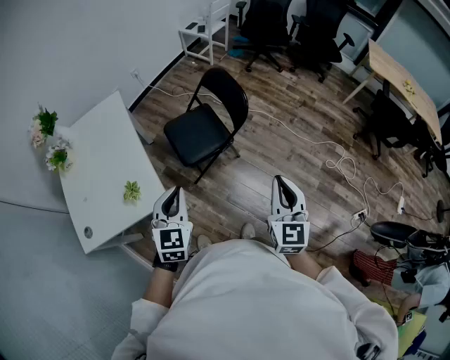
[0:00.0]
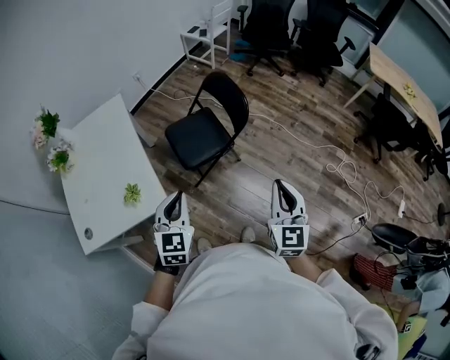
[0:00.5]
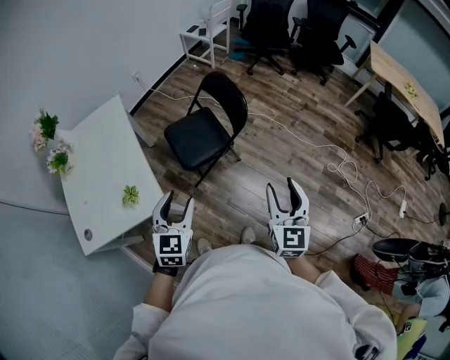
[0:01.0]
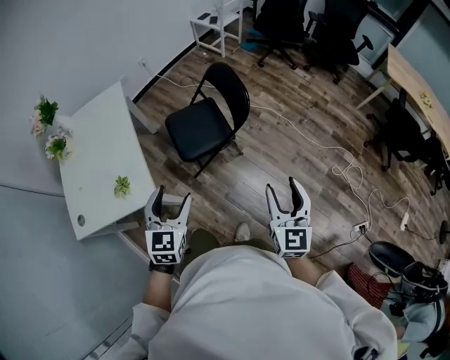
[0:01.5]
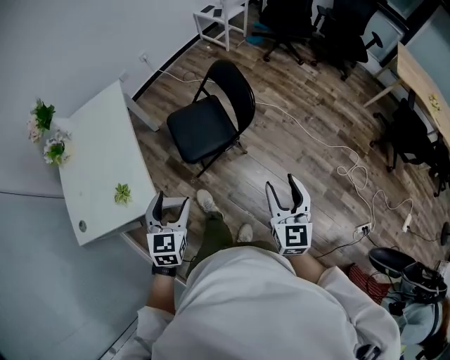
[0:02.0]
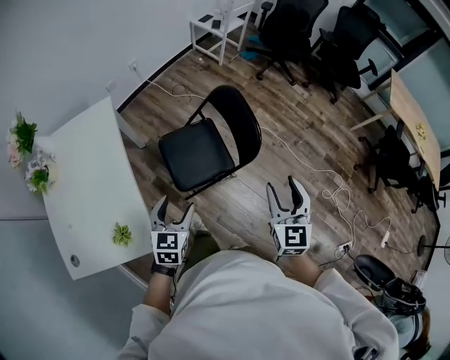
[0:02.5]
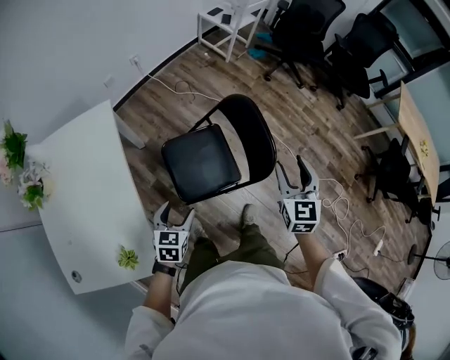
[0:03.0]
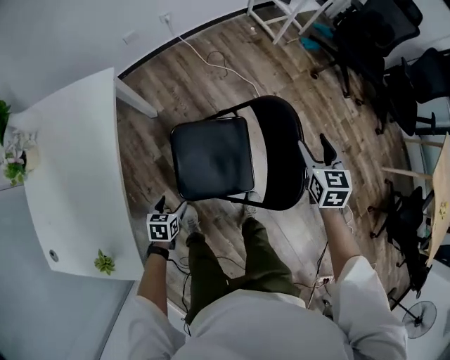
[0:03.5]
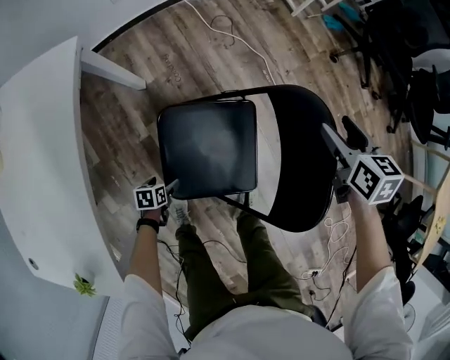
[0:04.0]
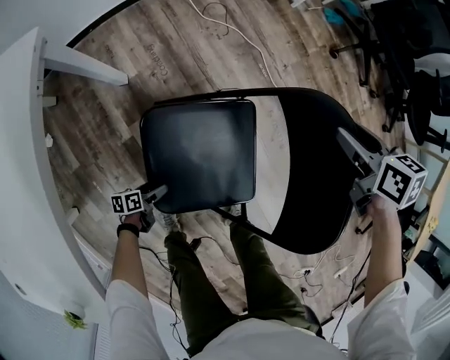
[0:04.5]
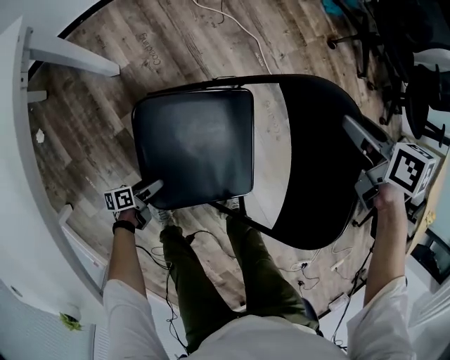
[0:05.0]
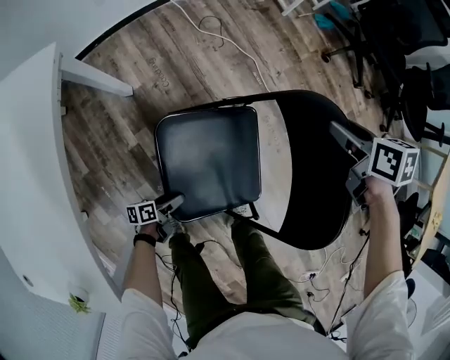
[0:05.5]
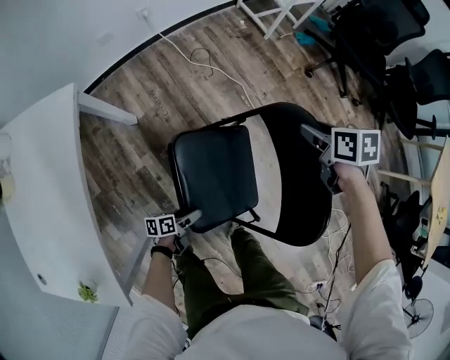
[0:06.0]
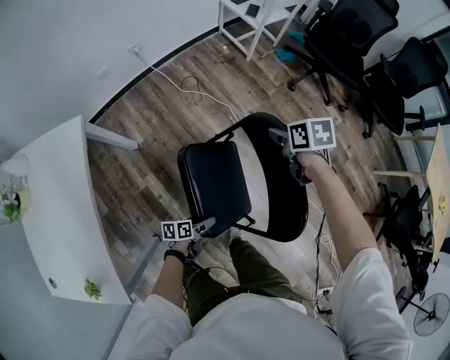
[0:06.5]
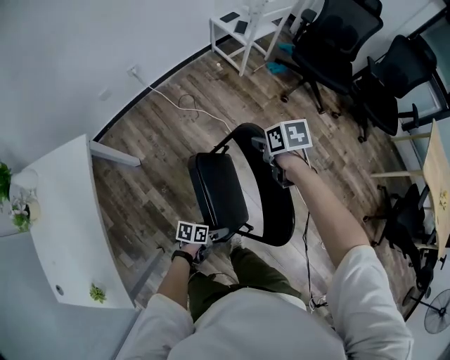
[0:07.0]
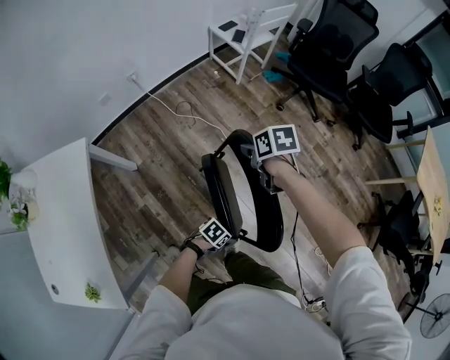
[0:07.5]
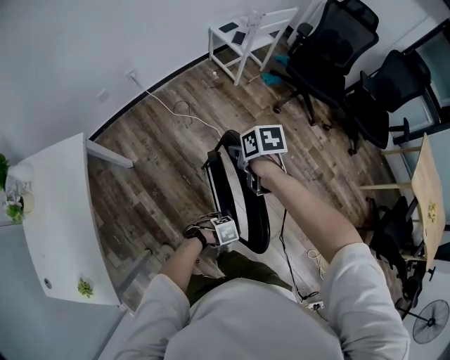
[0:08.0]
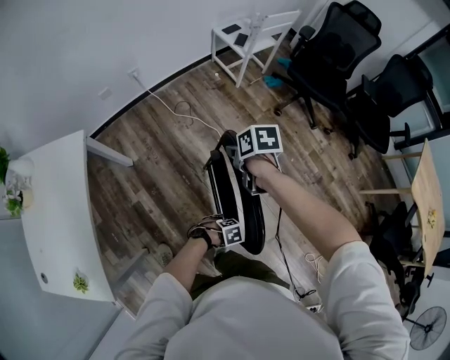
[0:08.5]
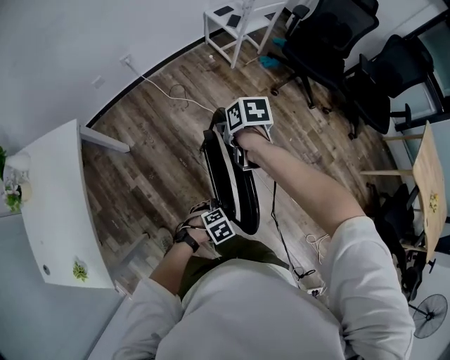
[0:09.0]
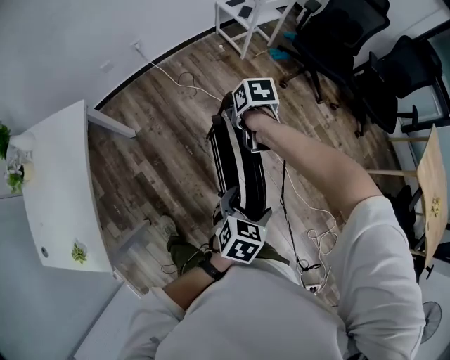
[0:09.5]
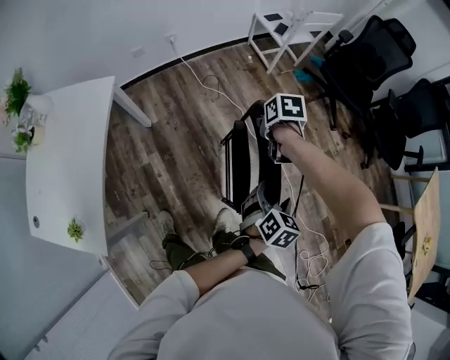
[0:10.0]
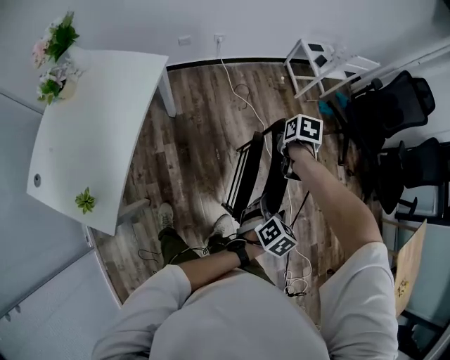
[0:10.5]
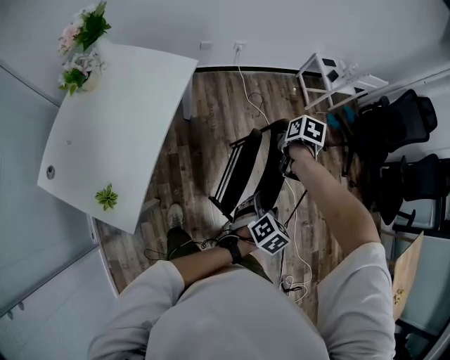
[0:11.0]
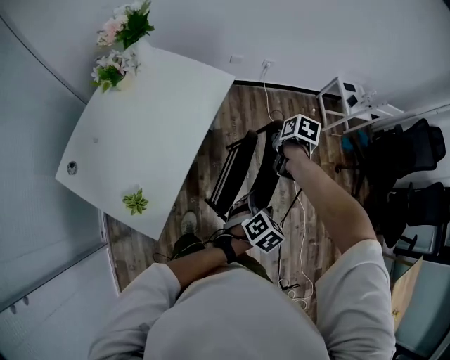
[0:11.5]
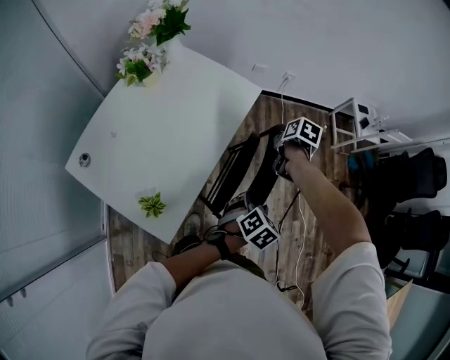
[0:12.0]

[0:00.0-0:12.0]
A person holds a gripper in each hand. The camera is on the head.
0:00.0 to 0:02.0: The right gripper is displaced forward, to the right and downward by about 15 cm, and opens. Meanwhile the left gripper goes approximately 10 cm forward and downward, and opens.
0:02.0 to 0:04.0: The right gripper goes approximately 70 cm forward, and tilts its fingers roughly 30 degrees downward; the left gripper is displaced downward and forward by approximately 70 cm, and points its fingers approximately 40 degrees further downward.
0:04.0 to 0:06.0: The right gripper goes downward and returns, some 5 cm each way, and closes its fingers, while the left gripper travels to the right and upward by about 20 cm, and angles its fingers upward, by about 30 degrees.
0:06.0 to 0:08.0: The right gripper moves upward, some 10 cm. The left gripper moves roughly 30 cm, and angles its fingers downward, by some 30 degrees.
0:08.0 to 0:10.0: The left gripper shifts roughly 20 cm upward, and turns by approximately 70 degrees.
0:10.0 to 0:12.0: The two grippers travel together, to the left, roughly 50 cm. The left gripper closes its fingers.

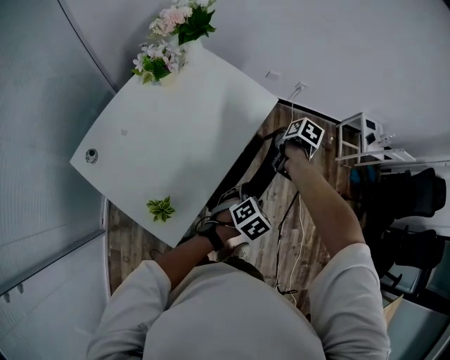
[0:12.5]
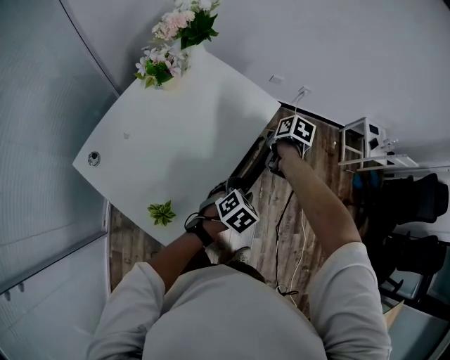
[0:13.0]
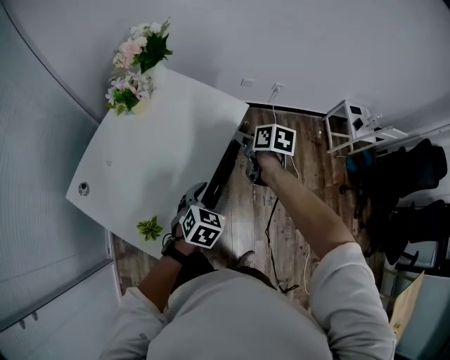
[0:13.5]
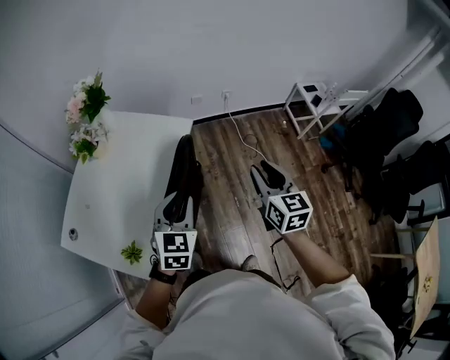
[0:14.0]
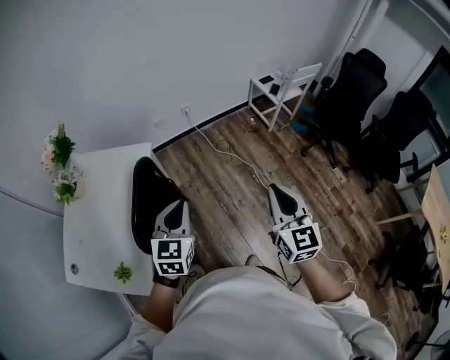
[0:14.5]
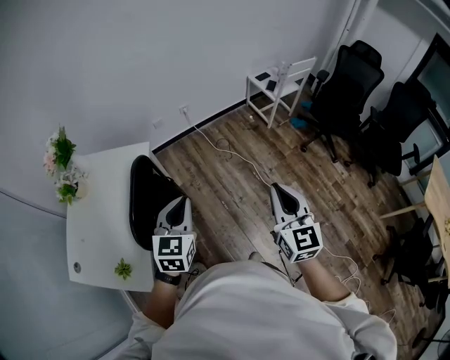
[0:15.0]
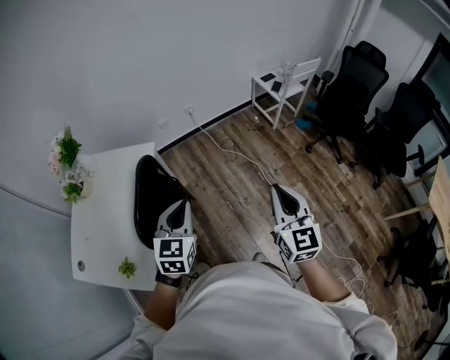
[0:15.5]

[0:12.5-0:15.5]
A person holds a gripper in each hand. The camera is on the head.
0:12.5 to 0:14.0: The right gripper heads upward, to the right and backward, covering some 30 cm, tips its fingers upward by roughly 50 degrees, and opens and closes again, while the left gripper moves upward, approximately 15 cm, and turns by some 30 degrees.
0:14.0 to 0:15.5: The right gripper moves to the right and backward, some 30 cm, turns by some 20 degrees, and closes its fingers. The left gripper is displaced to the right by about 20 cm.

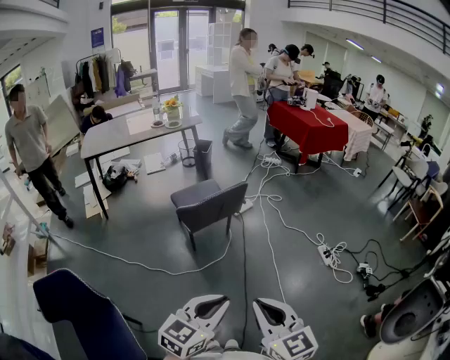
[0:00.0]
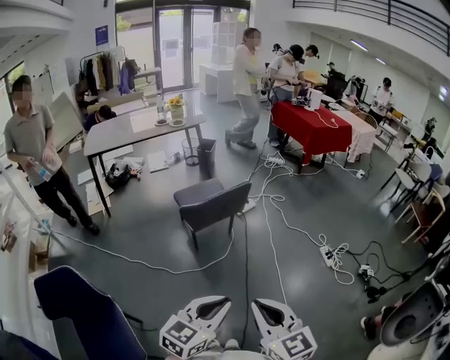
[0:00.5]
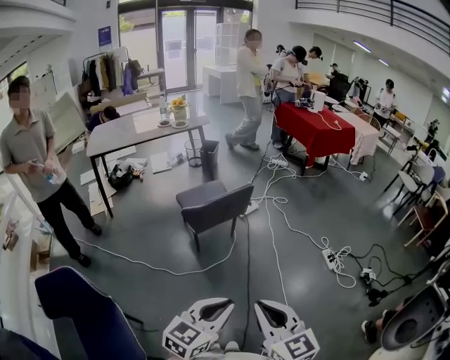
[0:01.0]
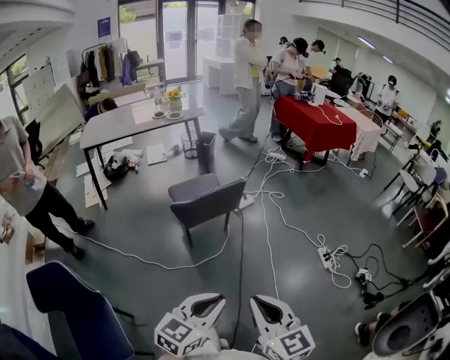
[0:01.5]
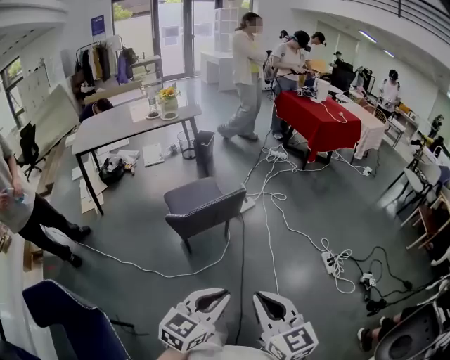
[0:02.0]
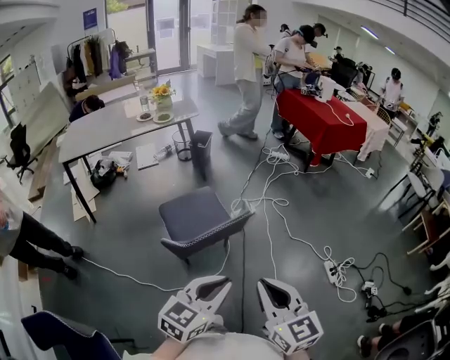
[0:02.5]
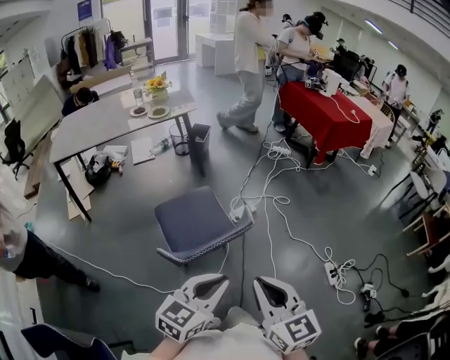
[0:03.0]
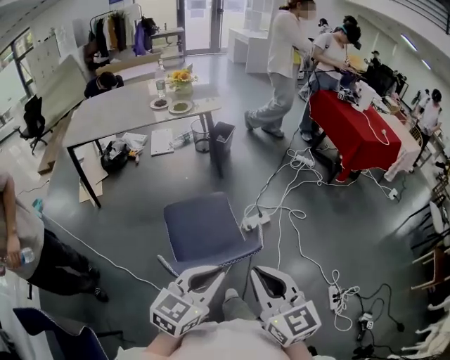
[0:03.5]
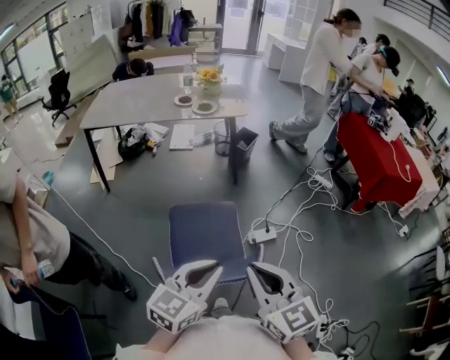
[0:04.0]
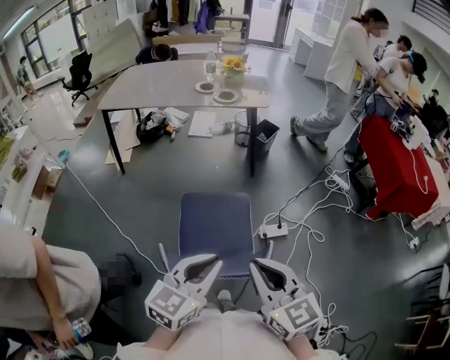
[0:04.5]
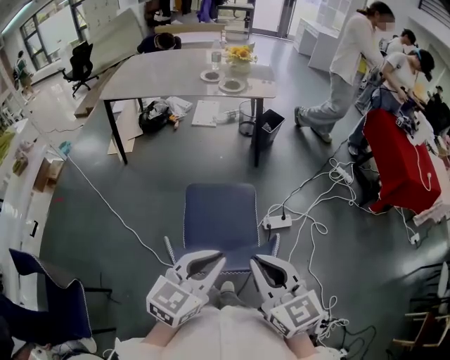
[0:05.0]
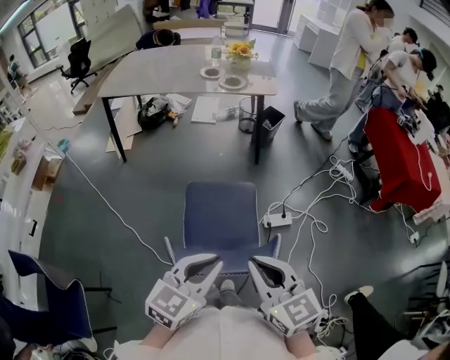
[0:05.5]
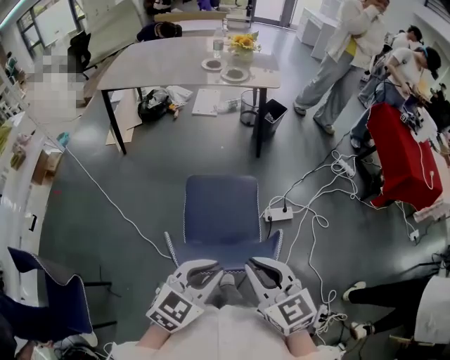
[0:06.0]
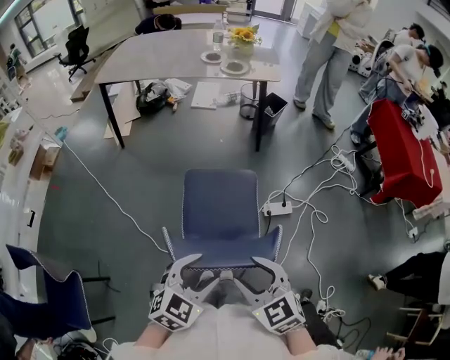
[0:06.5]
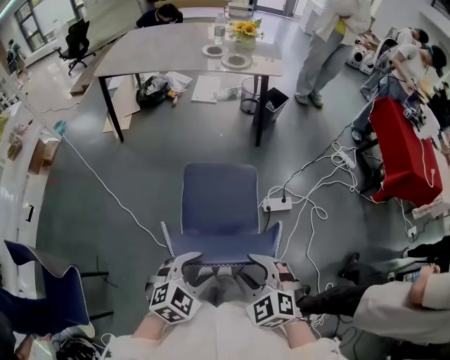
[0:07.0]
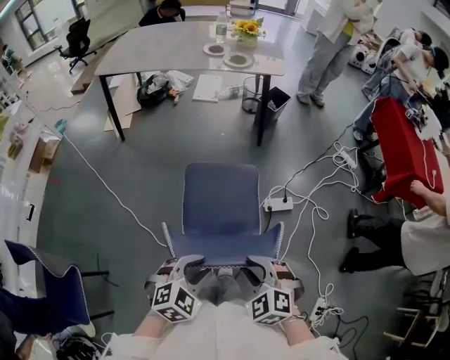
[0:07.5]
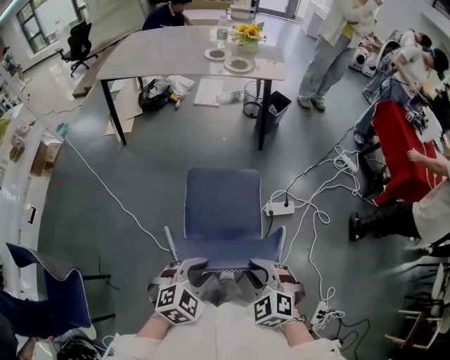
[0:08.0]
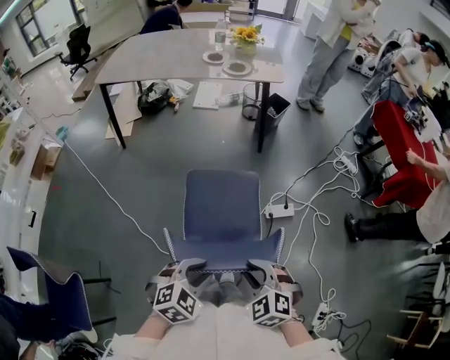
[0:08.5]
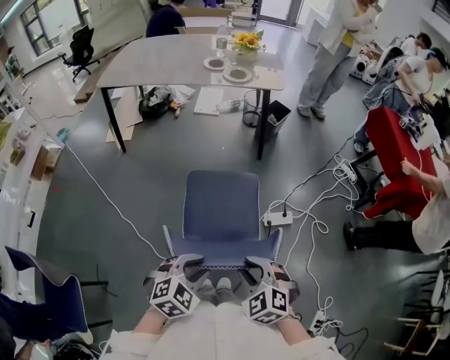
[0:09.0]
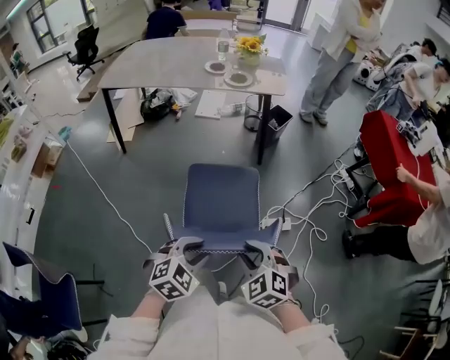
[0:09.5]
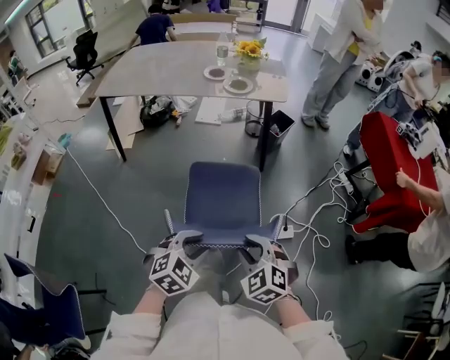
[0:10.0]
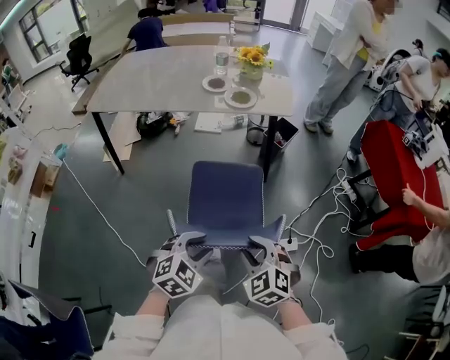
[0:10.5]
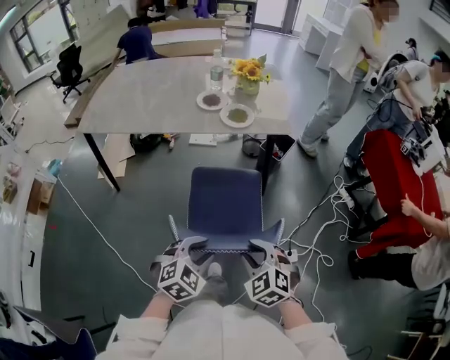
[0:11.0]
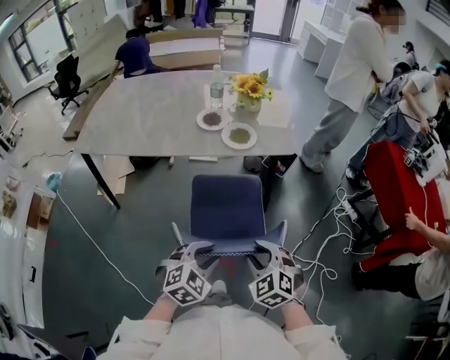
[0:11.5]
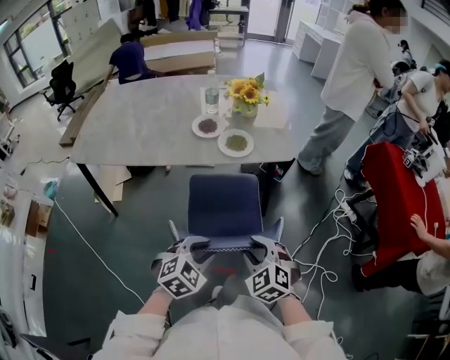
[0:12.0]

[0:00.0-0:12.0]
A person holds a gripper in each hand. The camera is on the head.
0:00.0 to 0:02.0: Both grippers move forward, approximately 15 cm.
0:02.0 to 0:04.0: The pair of grippers is taken forward, about 50 cm. The left gripper turns by about 20 degrees. Meanwhile the right gripper turns by roughly 20 degrees.
0:04.0 to 0:06.0: The two grippers go roughly 5 cm downward.
0:06.0 to 0:08.0: Both grippers travel together downward, some 10 cm. The left gripper rotates approximately 30 degrees, and opens its fingers. The right gripper rotates some 40 degrees, and opens up.
0:08.0 to 0:10.0: Both grippers travel together forward, about 20 cm.
0:10.0 to 0:12.0: Both grippers travel together forward, about 35 cm.
